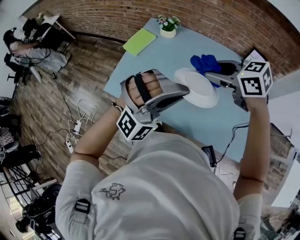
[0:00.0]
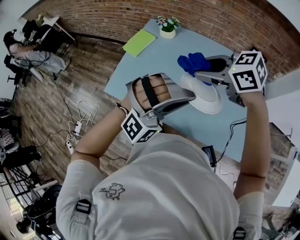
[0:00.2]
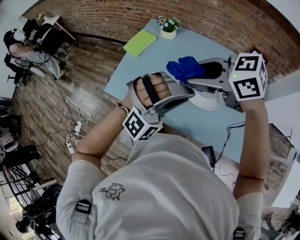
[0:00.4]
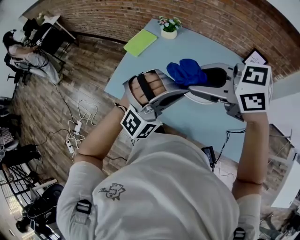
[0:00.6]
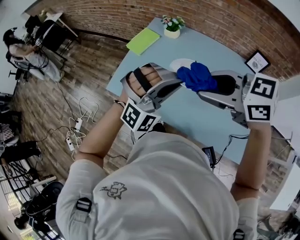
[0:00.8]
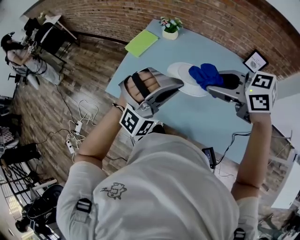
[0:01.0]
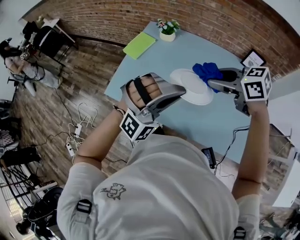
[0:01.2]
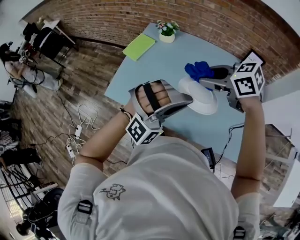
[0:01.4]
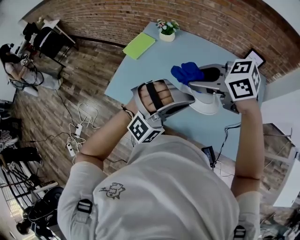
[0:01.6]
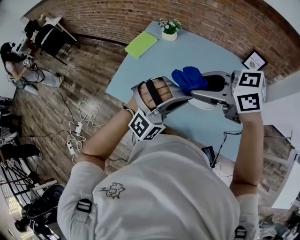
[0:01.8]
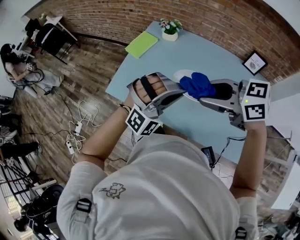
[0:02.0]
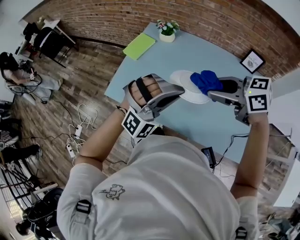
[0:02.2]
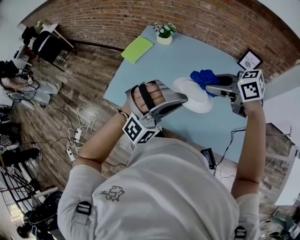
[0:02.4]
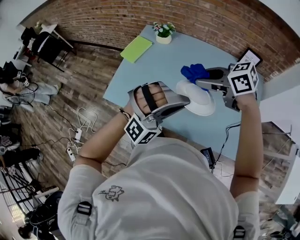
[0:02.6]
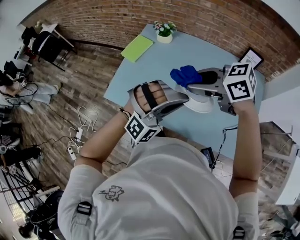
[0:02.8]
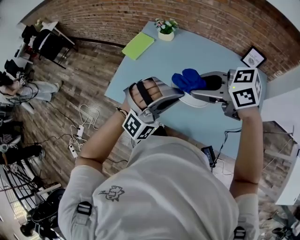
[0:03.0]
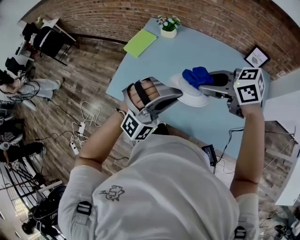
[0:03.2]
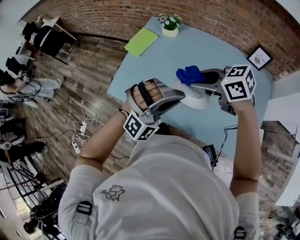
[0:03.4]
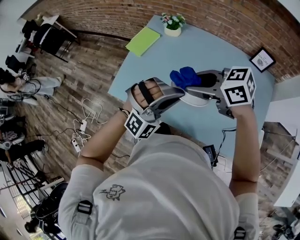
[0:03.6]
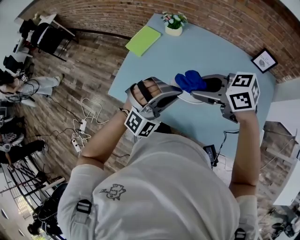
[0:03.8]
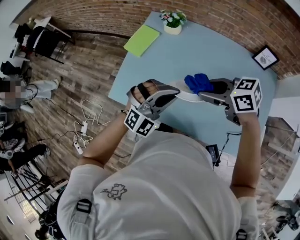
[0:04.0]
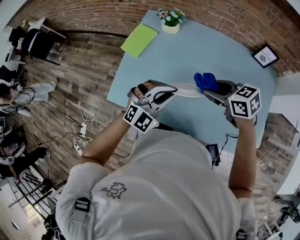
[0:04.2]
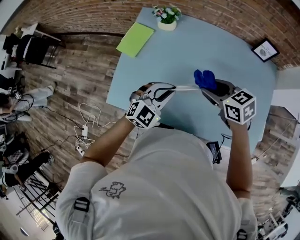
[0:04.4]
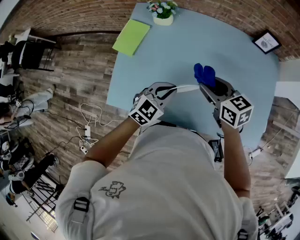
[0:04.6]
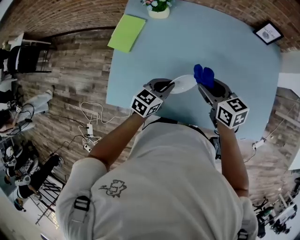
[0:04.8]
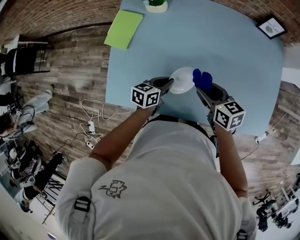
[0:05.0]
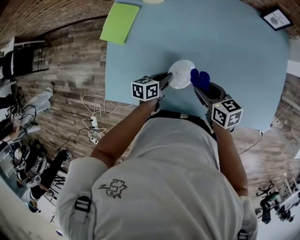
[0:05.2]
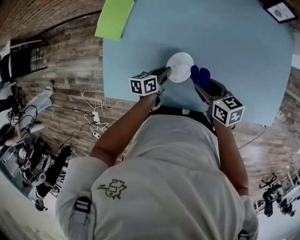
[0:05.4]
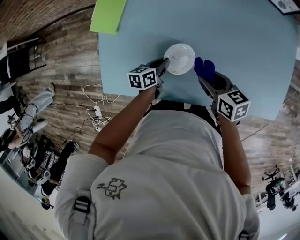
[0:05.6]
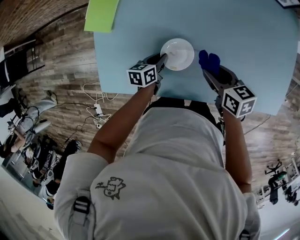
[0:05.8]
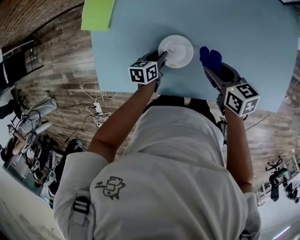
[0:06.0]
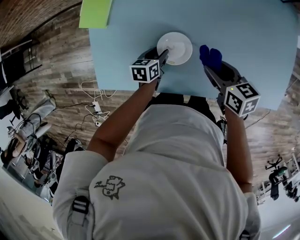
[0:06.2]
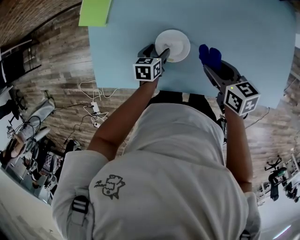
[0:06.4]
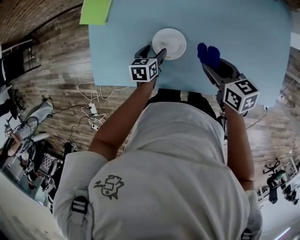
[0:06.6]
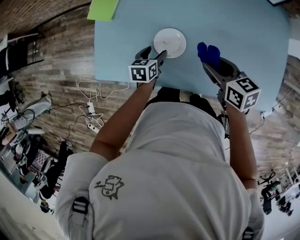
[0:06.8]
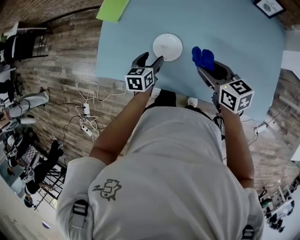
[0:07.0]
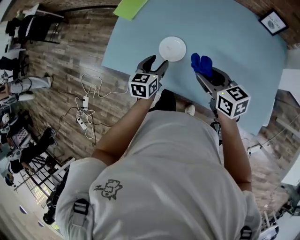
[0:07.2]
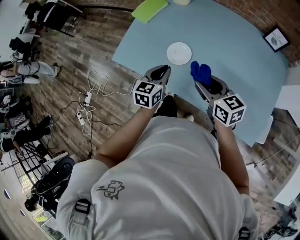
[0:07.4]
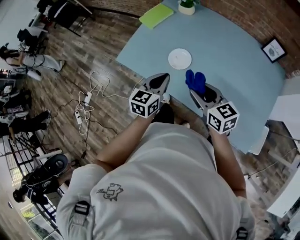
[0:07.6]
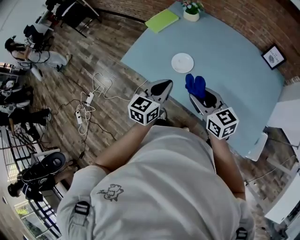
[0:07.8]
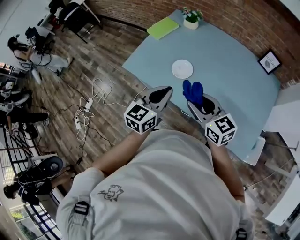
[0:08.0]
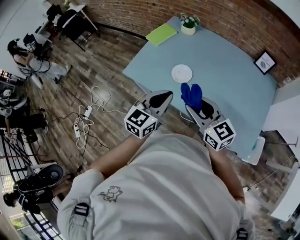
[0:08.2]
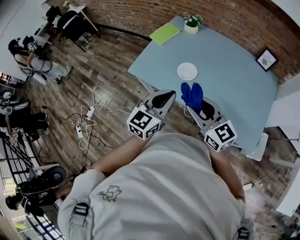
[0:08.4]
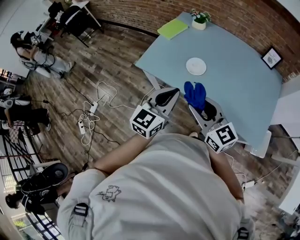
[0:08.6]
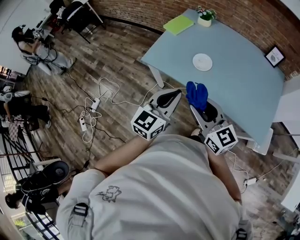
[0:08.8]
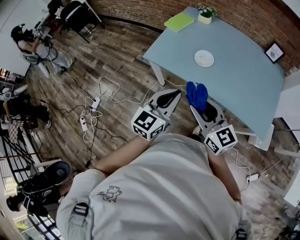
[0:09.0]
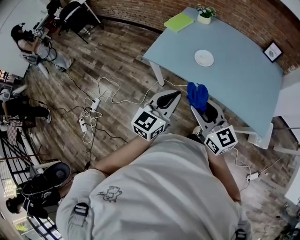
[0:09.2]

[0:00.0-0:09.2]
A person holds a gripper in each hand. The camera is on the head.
0:00.0 to 0:01.6: The right gripper moves approximately 5 cm upward and comes back.
0:03.0 to 0:04.6: The grippers both shift downward by some 20 cm. The left gripper rotates around the line of its fingers by roughly 70 degrees, counterclockwise from behind. The right gripper changes its angle by roughly 50 degrees.
0:04.6 to 0:06.2: The left gripper heads downward, covering about 25 cm, rolls counterclockwise, seen from behind, by roughly 50 degrees, and opens its fingers; the right gripper heads downward, covering approximately 15 cm, and rotates approximately 30 degrees.
0:06.2 to 0:07.6: The left gripper is displaced upward by about 25 cm, changes its angle by about 40 degrees, and closes its fingers; the right gripper changes place by roughly 20 cm, and changes its angle by approximately 40 degrees.
0:07.6 to 0:09.2: The right gripper shifts approximately 30 cm to the left and backward, and swivels some 20 degrees. Meanwhile the left gripper travels backward, to the left and upward by some 30 cm.

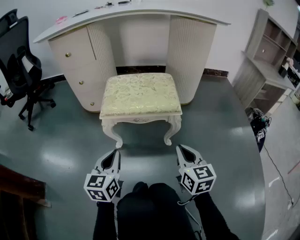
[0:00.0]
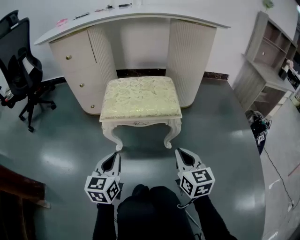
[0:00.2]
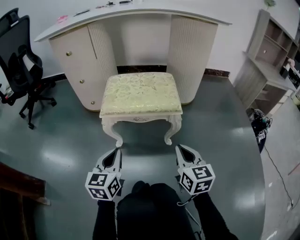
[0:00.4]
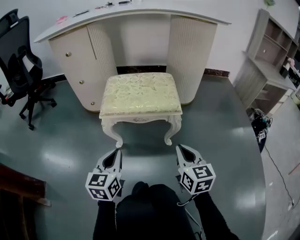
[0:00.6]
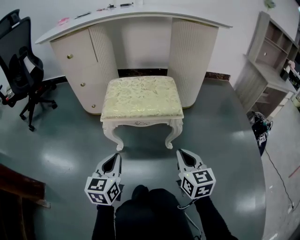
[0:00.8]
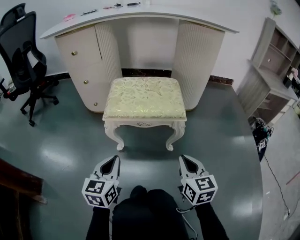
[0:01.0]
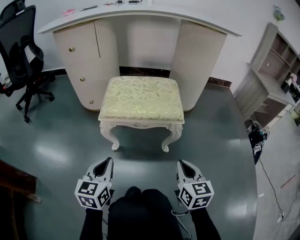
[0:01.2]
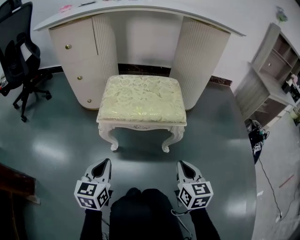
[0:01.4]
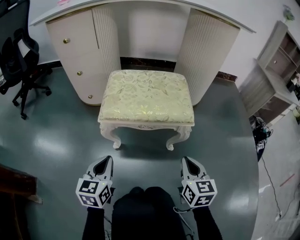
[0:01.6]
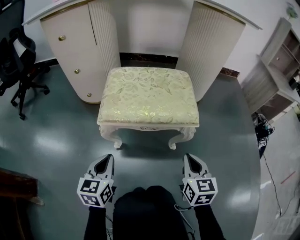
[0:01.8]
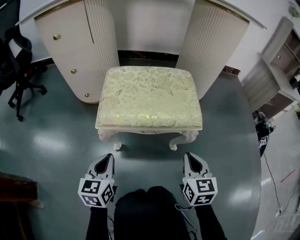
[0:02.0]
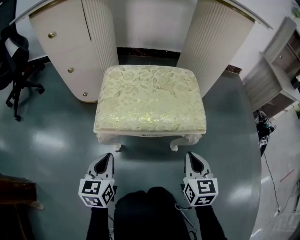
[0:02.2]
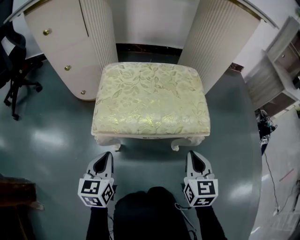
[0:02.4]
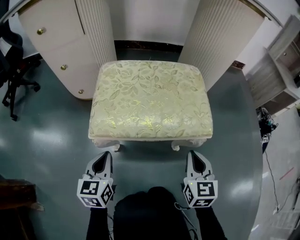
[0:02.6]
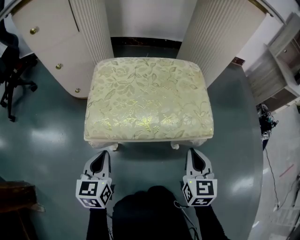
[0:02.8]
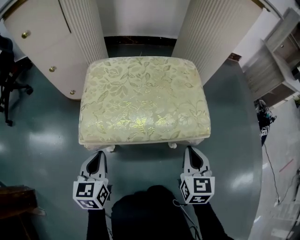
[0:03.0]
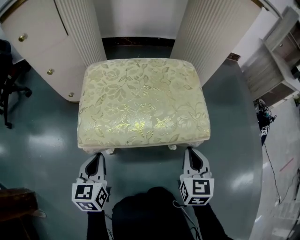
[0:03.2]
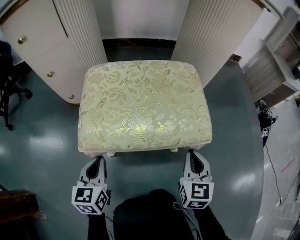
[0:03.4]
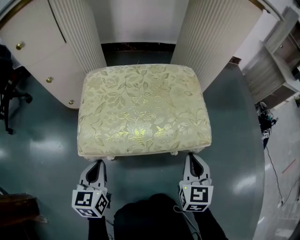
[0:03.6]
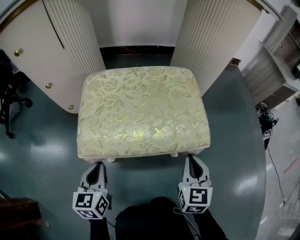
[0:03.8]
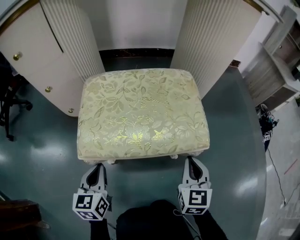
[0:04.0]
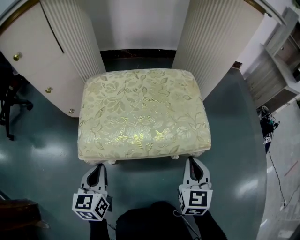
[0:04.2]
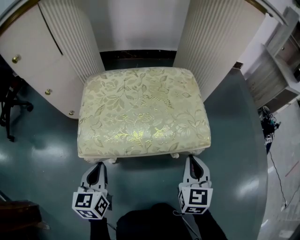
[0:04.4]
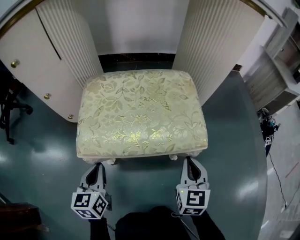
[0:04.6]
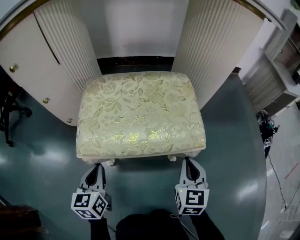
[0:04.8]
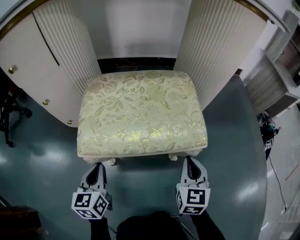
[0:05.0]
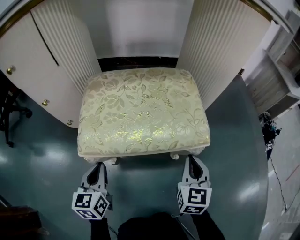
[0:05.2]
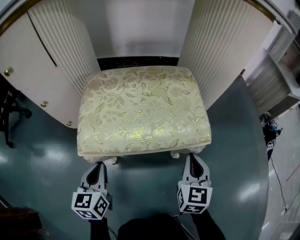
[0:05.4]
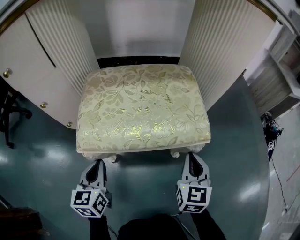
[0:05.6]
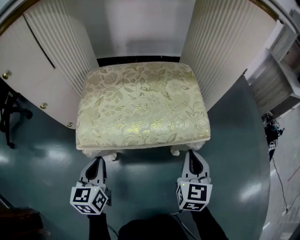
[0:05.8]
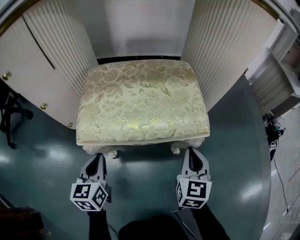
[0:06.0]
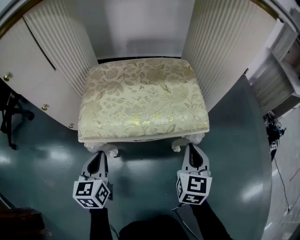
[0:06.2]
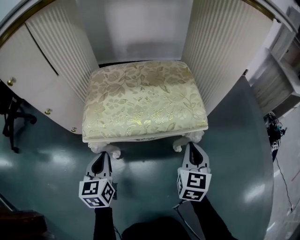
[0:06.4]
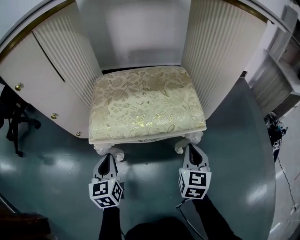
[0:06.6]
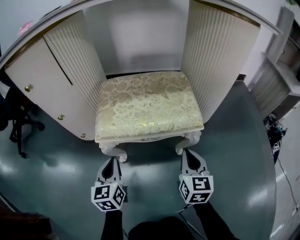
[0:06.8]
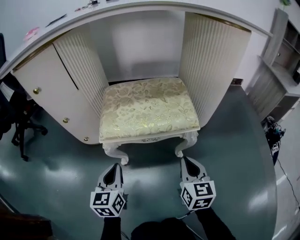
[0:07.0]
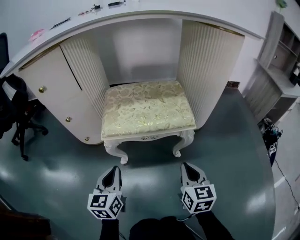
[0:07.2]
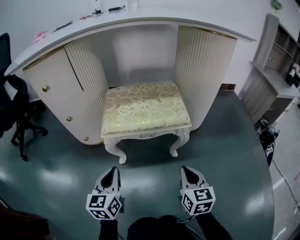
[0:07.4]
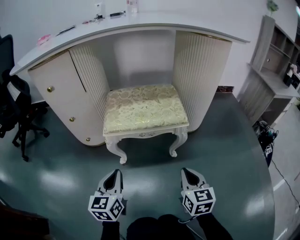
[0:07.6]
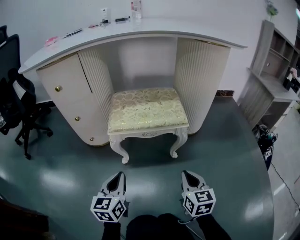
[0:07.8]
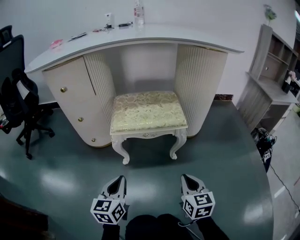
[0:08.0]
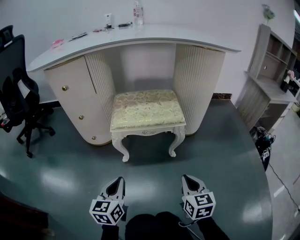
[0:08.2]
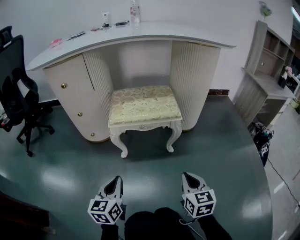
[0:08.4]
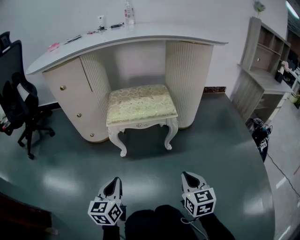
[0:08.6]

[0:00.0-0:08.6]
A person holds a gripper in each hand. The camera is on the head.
0:00.0 to 0:01.4: The grippers make only small movements.
0:01.4 to 0:02.8: The right gripper heads forward, covering approximately 10 cm, while the left gripper shifts roughly 15 cm forward and downward.
0:02.8 to 0:05.8: The grippers make only small movements.
0:05.8 to 0:07.2: The right gripper shifts roughly 10 cm backward; the left gripper moves backward and upward, about 10 cm.
0:07.2 to 0:08.6: Both grippers move backward, approximately 15 cm.

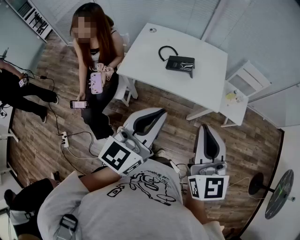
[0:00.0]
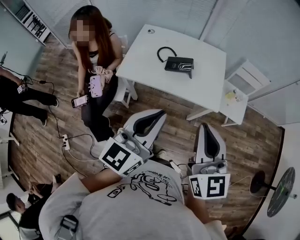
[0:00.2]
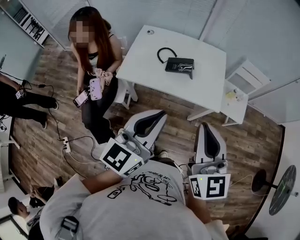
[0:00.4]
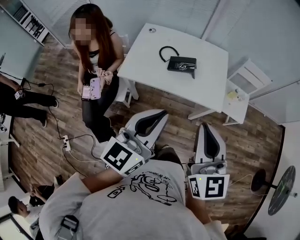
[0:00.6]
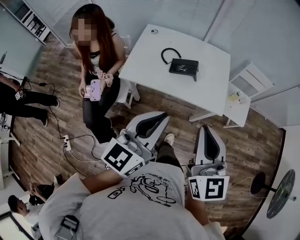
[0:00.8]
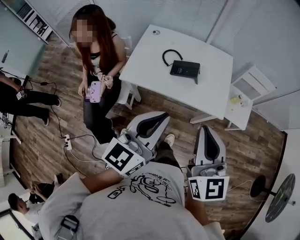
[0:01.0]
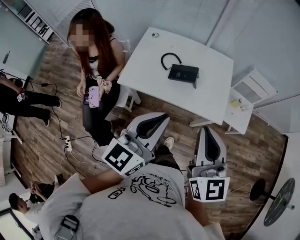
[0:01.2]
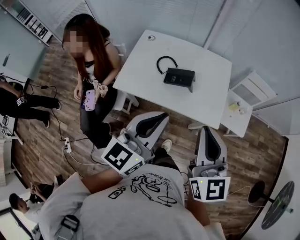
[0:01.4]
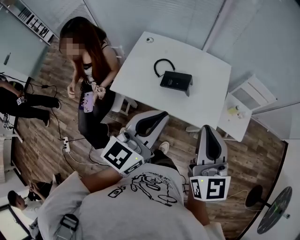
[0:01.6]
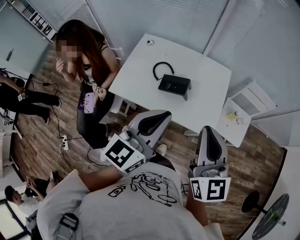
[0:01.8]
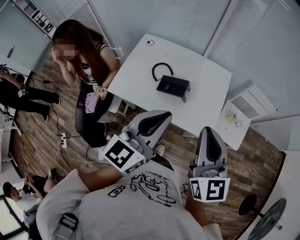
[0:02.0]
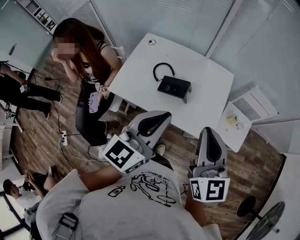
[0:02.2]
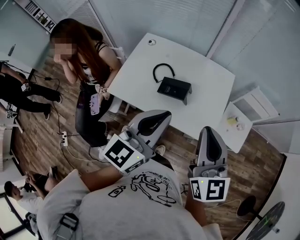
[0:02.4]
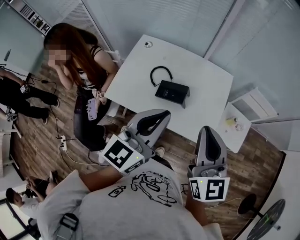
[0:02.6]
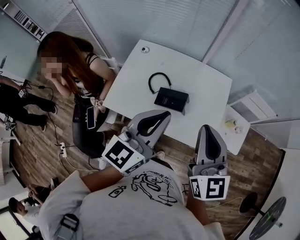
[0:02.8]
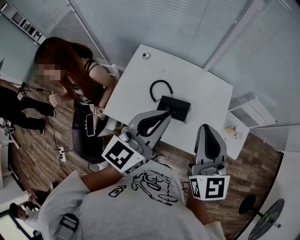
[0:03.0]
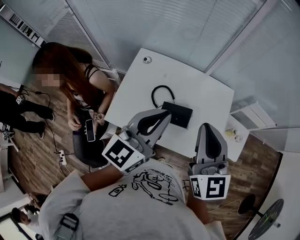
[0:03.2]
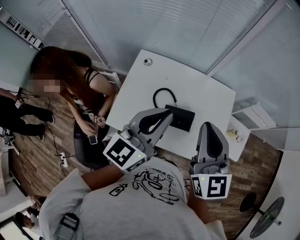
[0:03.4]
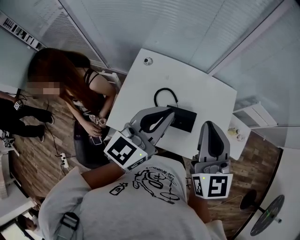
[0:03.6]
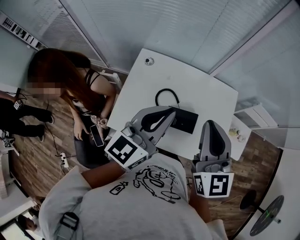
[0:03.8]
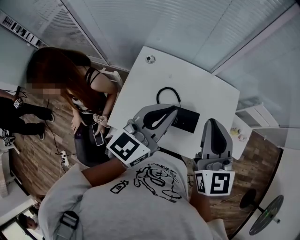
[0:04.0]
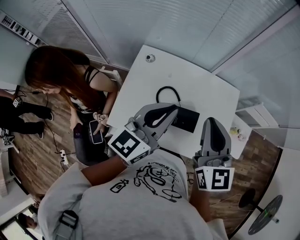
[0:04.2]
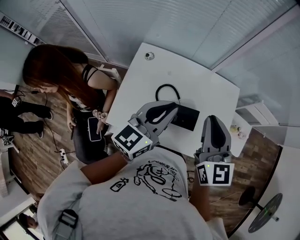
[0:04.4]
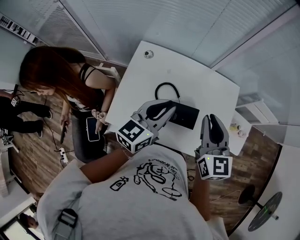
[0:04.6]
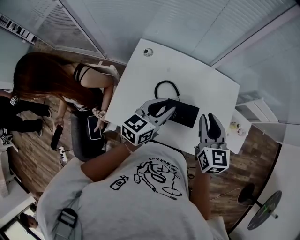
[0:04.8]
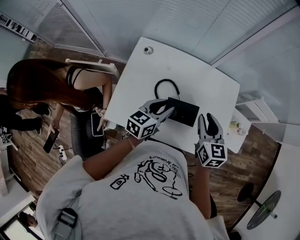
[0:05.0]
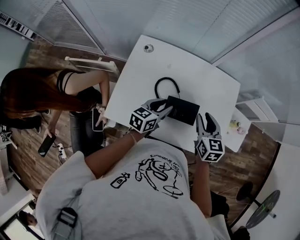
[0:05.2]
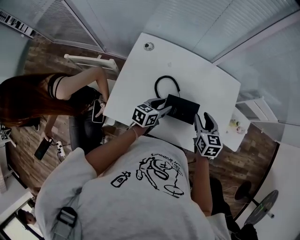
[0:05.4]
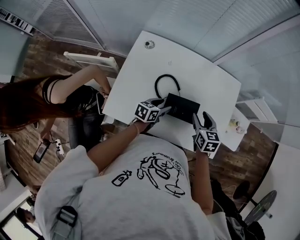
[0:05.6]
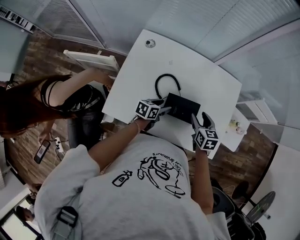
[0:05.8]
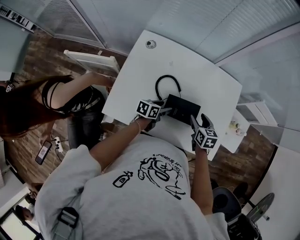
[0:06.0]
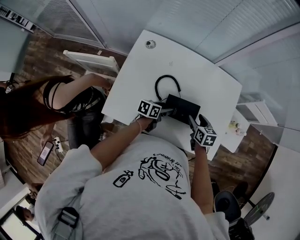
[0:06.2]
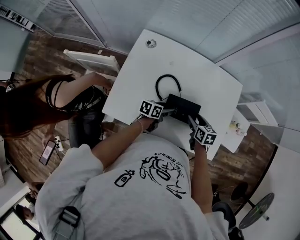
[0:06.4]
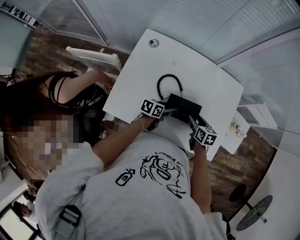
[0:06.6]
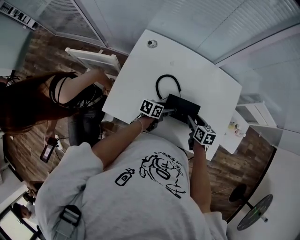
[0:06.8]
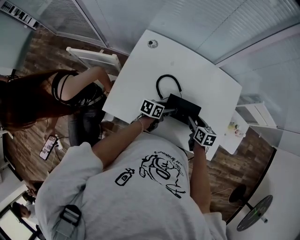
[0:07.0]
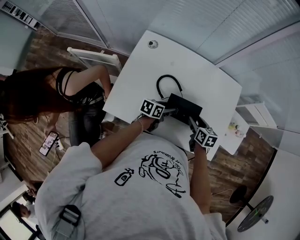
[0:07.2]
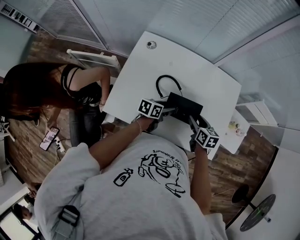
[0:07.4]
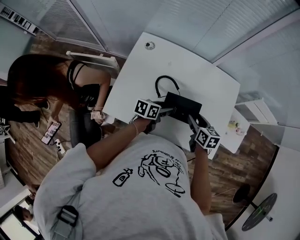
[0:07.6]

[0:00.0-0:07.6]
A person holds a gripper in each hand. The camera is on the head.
0:00.0 to 0:01.6: Both grippers travel together forward, about 15 cm.
0:01.6 to 0:03.0: The grippers both shift forward by roughly 20 cm.
0:03.0 to 0:04.6: The right gripper shifts roughly 15 cm forward, downward and to the left, while the left gripper shifts approximately 15 cm downward, forward and to the left.
0:04.6 to 0:06.0: The grippers both shift downward by about 30 cm. The right gripper points its fingers some 30 degrees further downward, and opens up. Meanwhile the left gripper turns by about 40 degrees, and opens.
0:06.0 to 0:07.6: The left gripper heads upward, covering about 5 cm.
